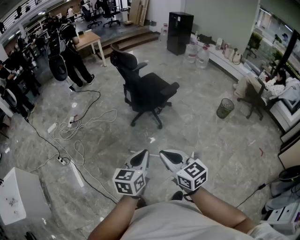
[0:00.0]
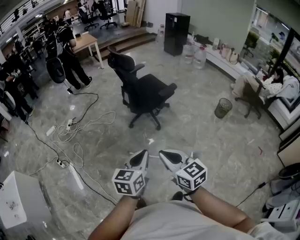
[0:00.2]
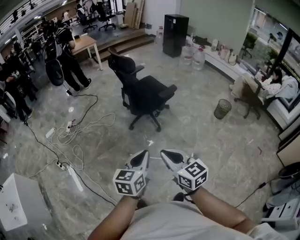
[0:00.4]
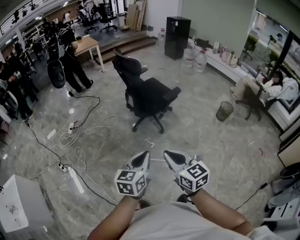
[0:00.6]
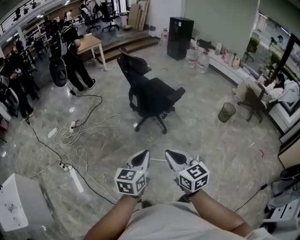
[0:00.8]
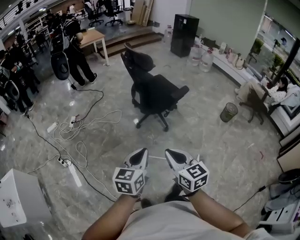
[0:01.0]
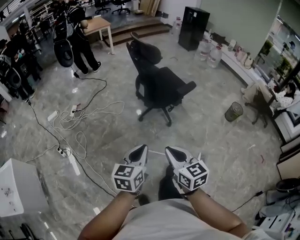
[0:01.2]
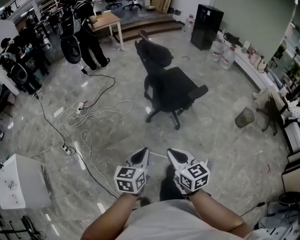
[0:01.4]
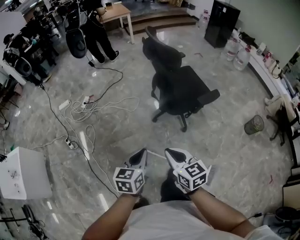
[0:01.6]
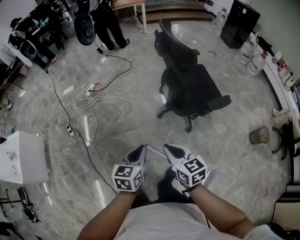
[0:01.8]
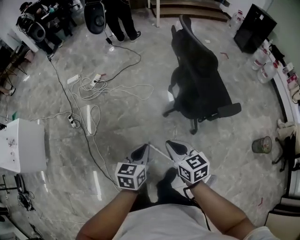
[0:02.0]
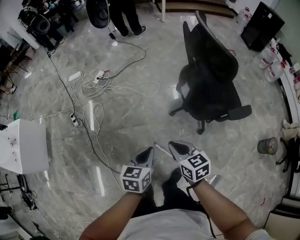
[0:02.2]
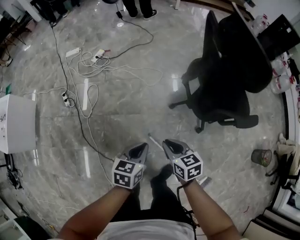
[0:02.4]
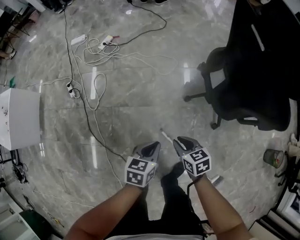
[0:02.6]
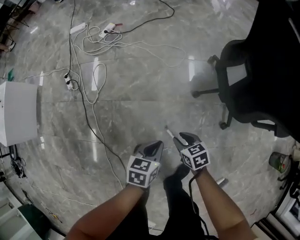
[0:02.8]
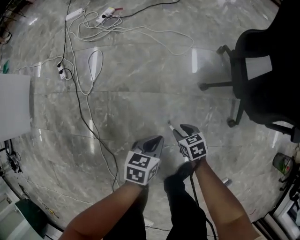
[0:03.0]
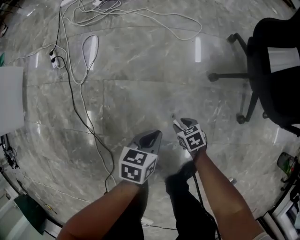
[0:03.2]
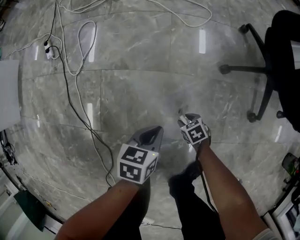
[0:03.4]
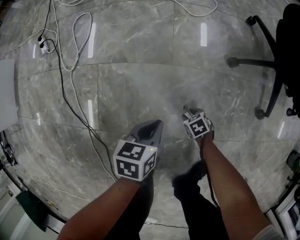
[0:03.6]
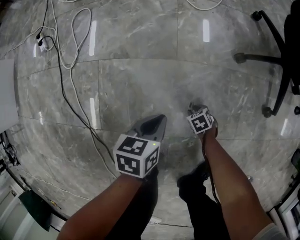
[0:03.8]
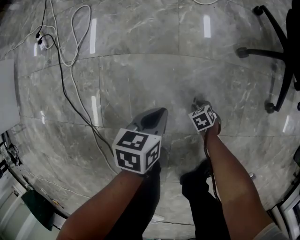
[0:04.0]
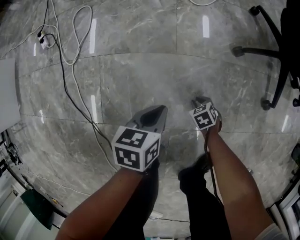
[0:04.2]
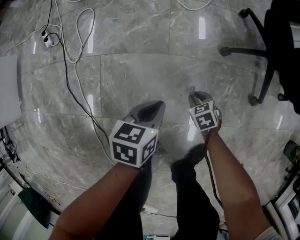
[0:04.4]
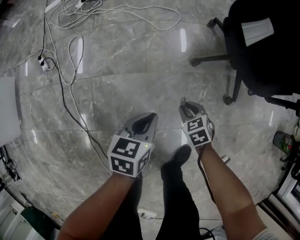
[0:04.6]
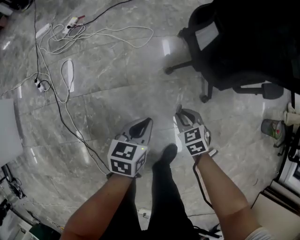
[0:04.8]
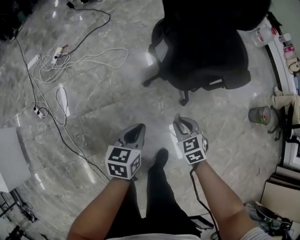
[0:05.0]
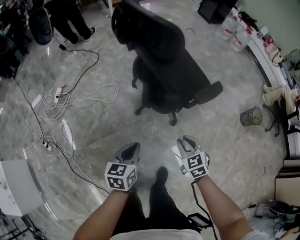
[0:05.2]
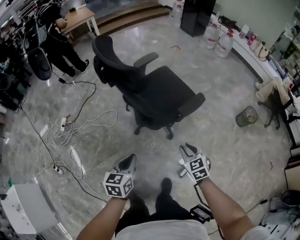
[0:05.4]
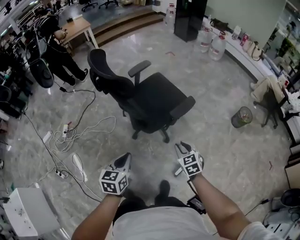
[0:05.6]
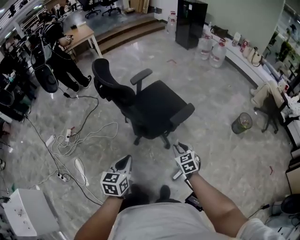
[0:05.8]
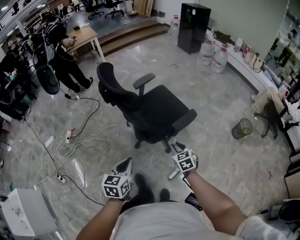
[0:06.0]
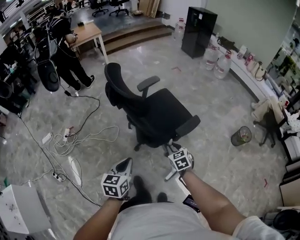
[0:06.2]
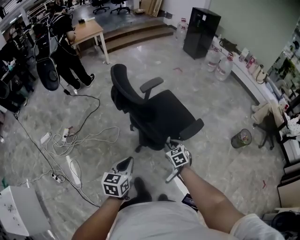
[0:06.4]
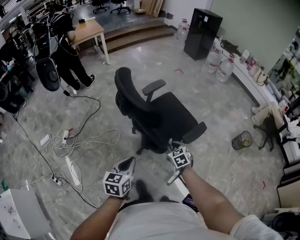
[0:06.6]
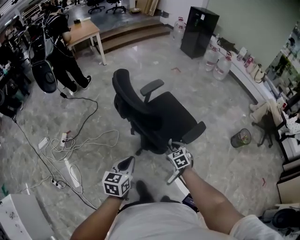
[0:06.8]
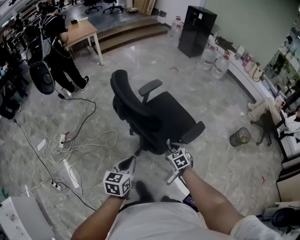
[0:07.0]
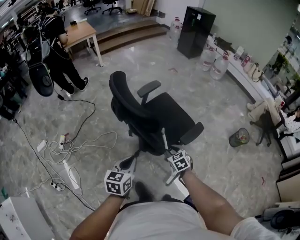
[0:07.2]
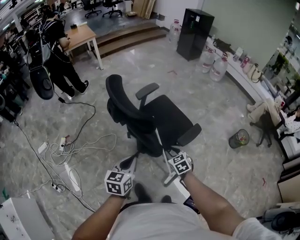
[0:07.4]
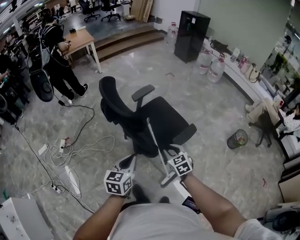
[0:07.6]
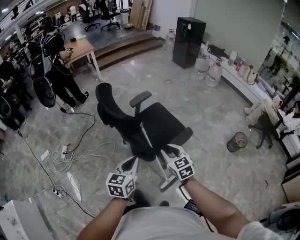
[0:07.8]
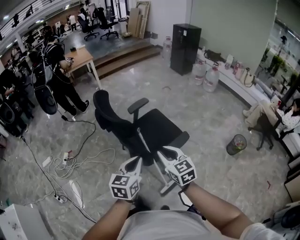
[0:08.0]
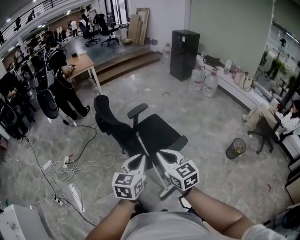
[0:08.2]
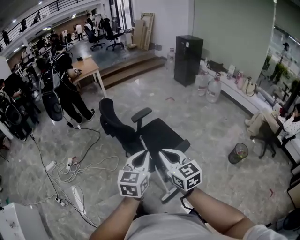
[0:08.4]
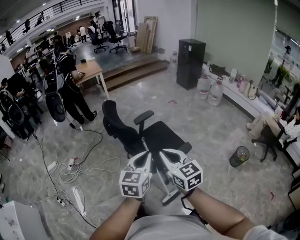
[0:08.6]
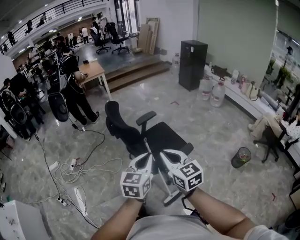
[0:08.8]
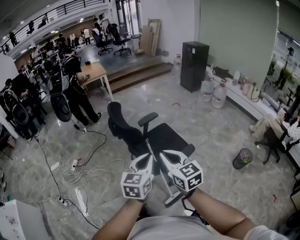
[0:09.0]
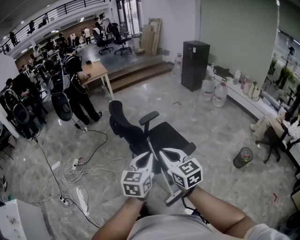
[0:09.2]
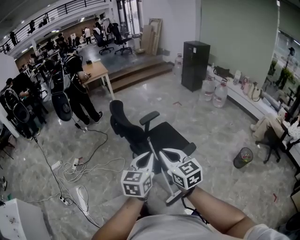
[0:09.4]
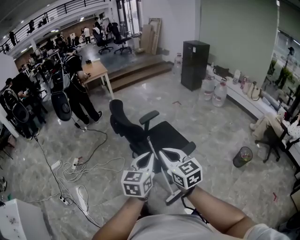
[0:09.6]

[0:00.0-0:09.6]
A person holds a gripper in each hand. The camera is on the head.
0.0 to 1.6 s: The left gripper heads forward, to the left and downward, covering roughly 30 cm, while the right gripper travels forward by some 30 cm.
1.6 to 3.2 s: The two grippers go about 70 cm downward. The right gripper tips its fingers downward by approximately 40 degrees, and opens. The left gripper turns by about 30 degrees.
3.2 to 4.8 s: Both grippers move upward, roughly 25 cm. The right gripper changes its angle by roughly 30 degrees.
4.8 to 6.4 s: The left gripper heads upward, covering roughly 40 cm, and changes its angle by roughly 20 degrees. The right gripper heads upward, to the right and forward, covering about 50 cm, and changes its angle by roughly 30 degrees.
6.4 to 8.0 s: The left gripper is displaced to the right and upward by approximately 20 cm; the right gripper travels upward by roughly 25 cm, and changes its angle by approximately 30 degrees.
8.0 to 9.6 s: The left gripper shifts some 10 cm upward. Meanwhile the right gripper goes approximately 15 cm upward and backward.

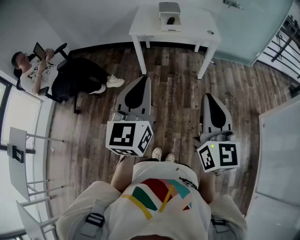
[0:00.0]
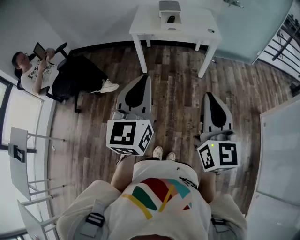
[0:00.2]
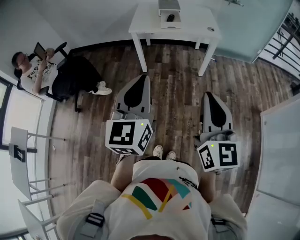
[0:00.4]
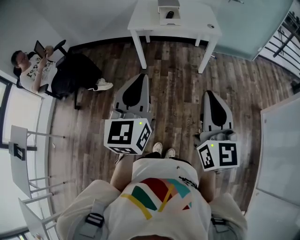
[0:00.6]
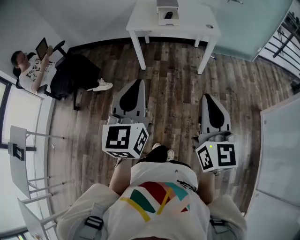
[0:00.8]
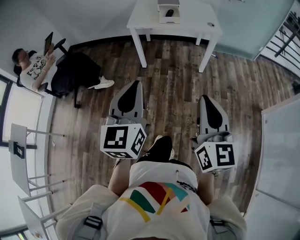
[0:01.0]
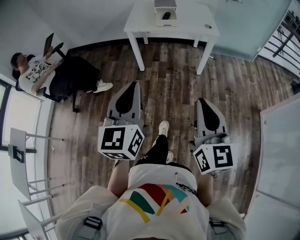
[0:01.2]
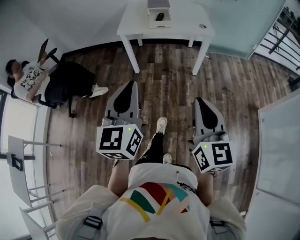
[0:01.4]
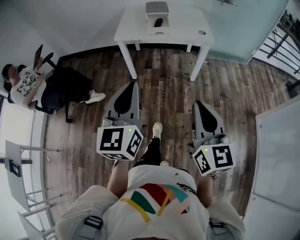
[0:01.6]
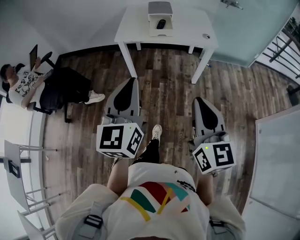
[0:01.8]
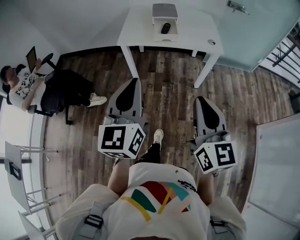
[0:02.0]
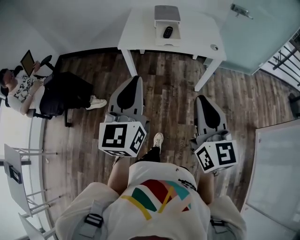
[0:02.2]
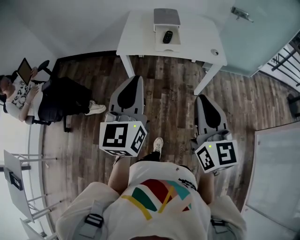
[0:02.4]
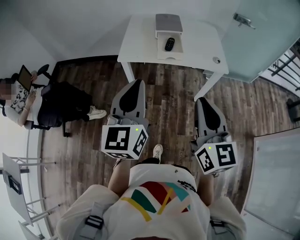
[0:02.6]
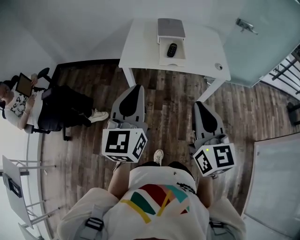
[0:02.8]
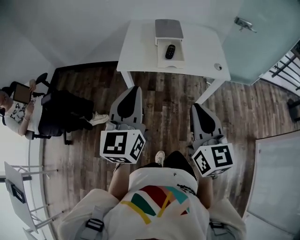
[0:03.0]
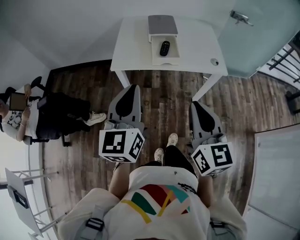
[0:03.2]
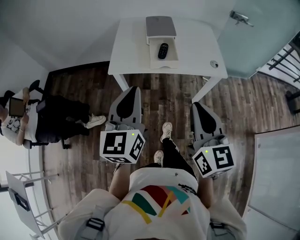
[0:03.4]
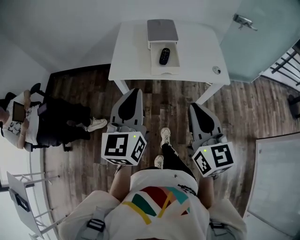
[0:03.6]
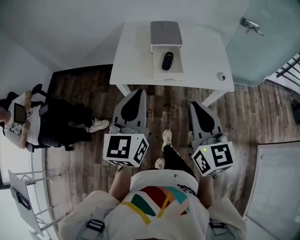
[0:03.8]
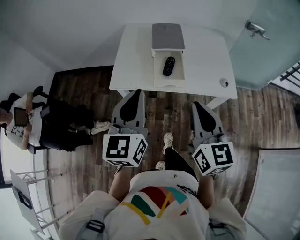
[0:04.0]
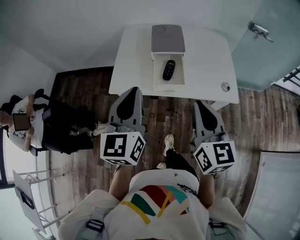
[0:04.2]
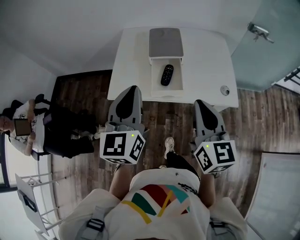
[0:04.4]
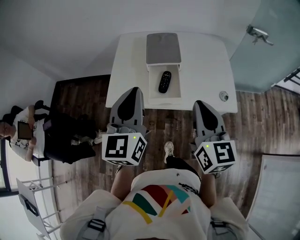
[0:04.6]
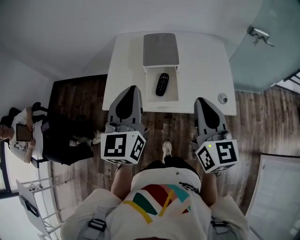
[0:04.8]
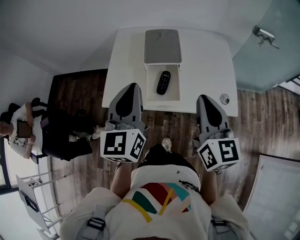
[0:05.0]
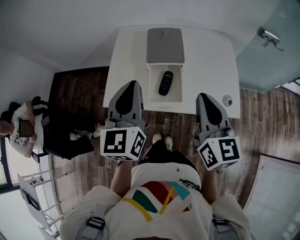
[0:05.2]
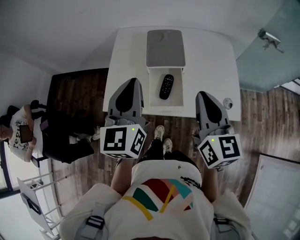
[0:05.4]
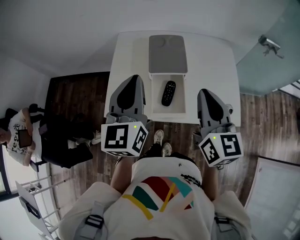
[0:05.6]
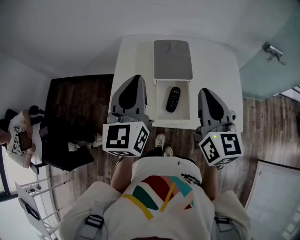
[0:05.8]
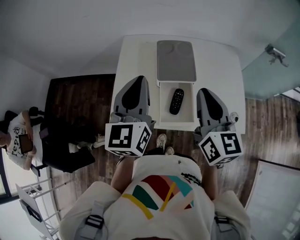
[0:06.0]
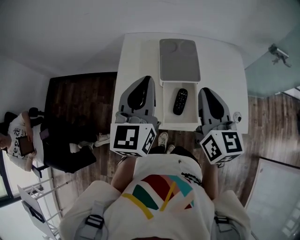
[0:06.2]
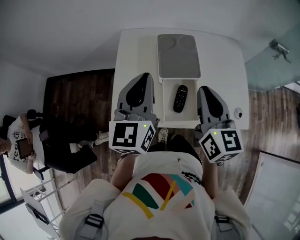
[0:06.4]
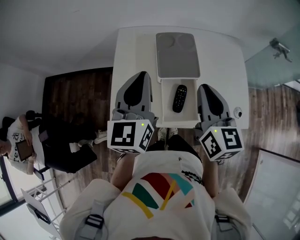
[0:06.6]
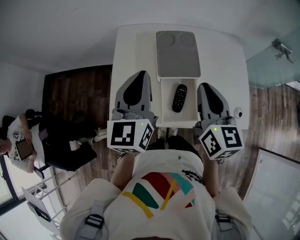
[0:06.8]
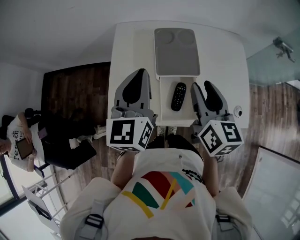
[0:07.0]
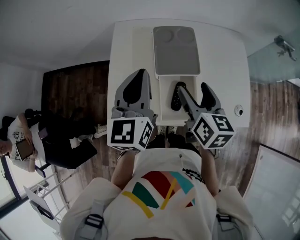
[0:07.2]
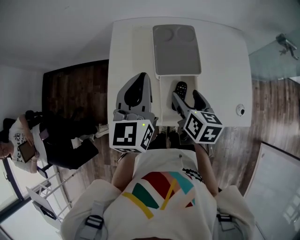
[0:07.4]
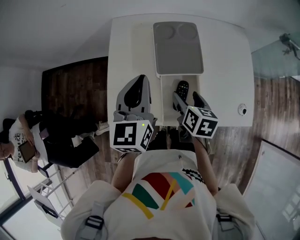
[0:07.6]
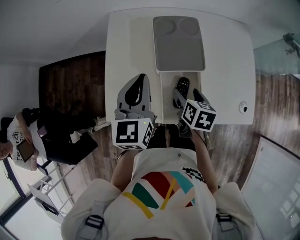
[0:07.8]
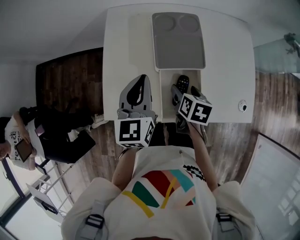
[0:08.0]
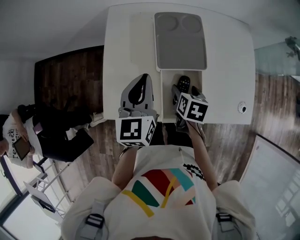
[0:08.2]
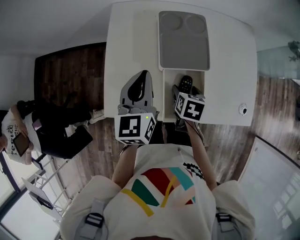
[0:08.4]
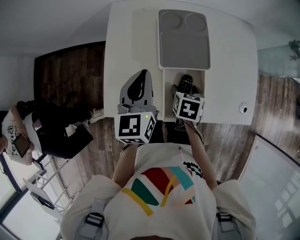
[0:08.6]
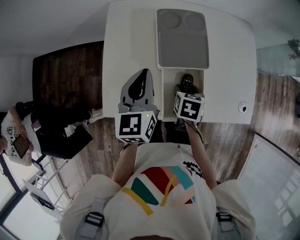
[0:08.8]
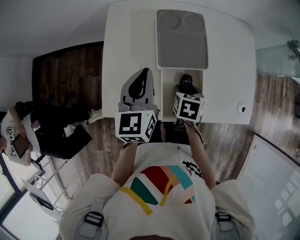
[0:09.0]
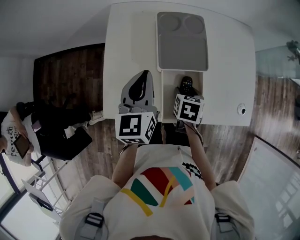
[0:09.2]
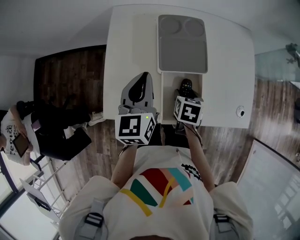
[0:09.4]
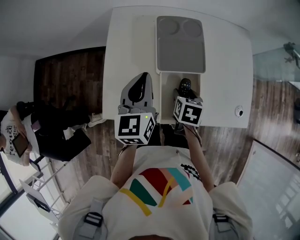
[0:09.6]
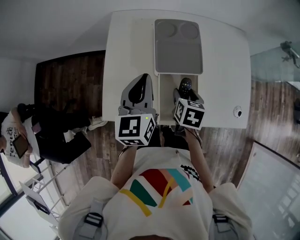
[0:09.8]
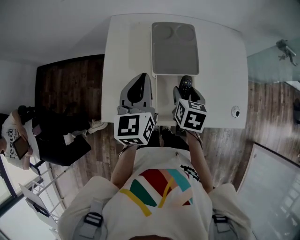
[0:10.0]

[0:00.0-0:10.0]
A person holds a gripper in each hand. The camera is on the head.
0.0 to 1.4 s: The left gripper shifts by approximately 5 cm, while the right gripper is displaced downward by some 5 cm.
1.4 to 2.8 s: The grippers both shift forward by approximately 35 cm.
2.8 to 4.2 s: Both grippers move forward, some 25 cm.
4.2 to 5.8 s: The grippers both shift forward by approximately 20 cm.
5.8 to 7.2 s: The left gripper goes approximately 10 cm forward and downward. Meanwhile the right gripper heads downward and forward, covering approximately 15 cm, turns by about 20 degrees, and opens.
7.2 to 8.6 s: The right gripper shifts some 20 cm downward, and points its fingers approximately 40 degrees further downward, while the left gripper shifts about 10 cm downward.
8.6 to 10.0 s: The right gripper is displaced upward by approximately 10 cm.

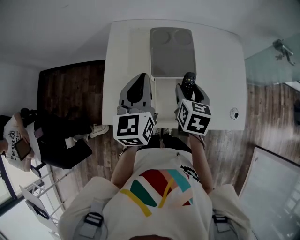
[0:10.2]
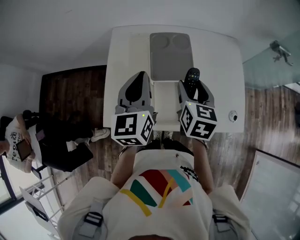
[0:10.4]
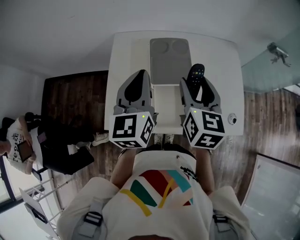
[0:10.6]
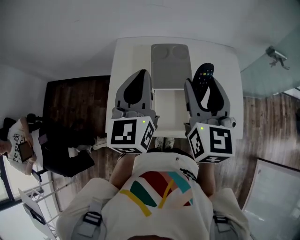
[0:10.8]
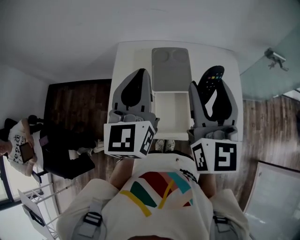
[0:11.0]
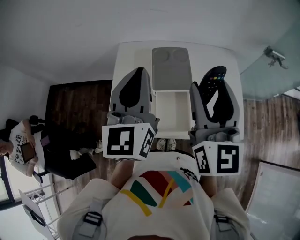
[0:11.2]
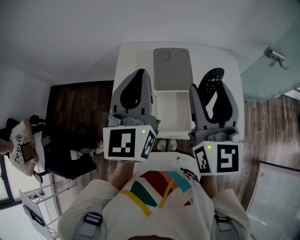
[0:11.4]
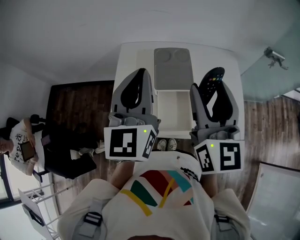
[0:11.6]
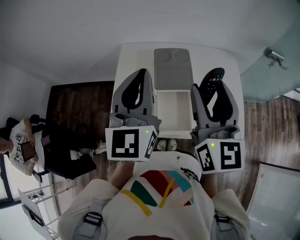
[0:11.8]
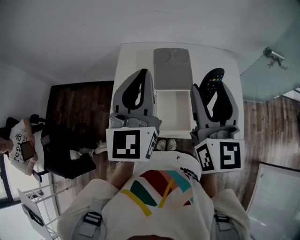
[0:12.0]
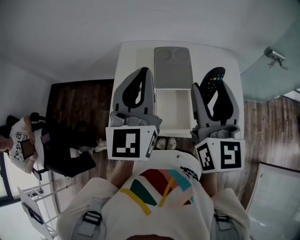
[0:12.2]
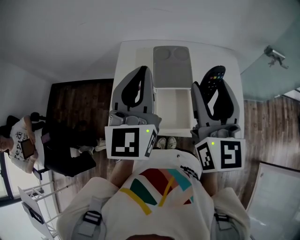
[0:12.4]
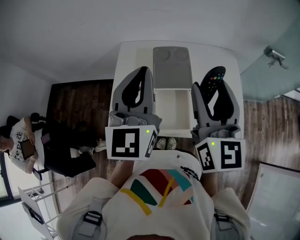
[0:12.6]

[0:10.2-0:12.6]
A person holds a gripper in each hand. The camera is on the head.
10.2 to 11.4 s: The right gripper travels upward by roughly 25 cm, and tips its fingers upward by roughly 40 degrees, while the left gripper heads upward, covering about 15 cm.
11.4 to 12.6 s: Both grippers stay put.

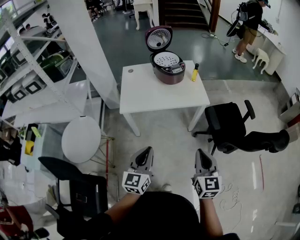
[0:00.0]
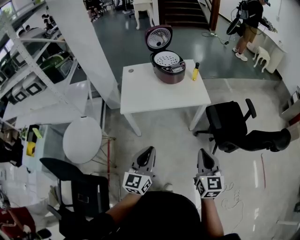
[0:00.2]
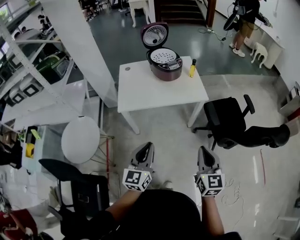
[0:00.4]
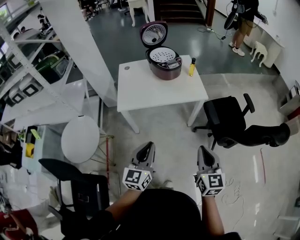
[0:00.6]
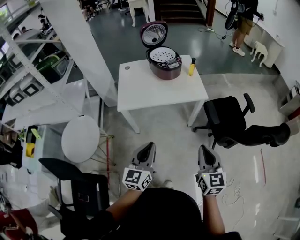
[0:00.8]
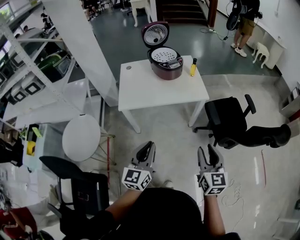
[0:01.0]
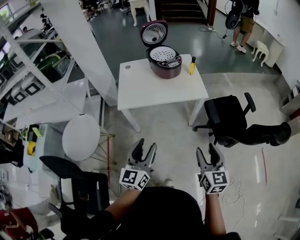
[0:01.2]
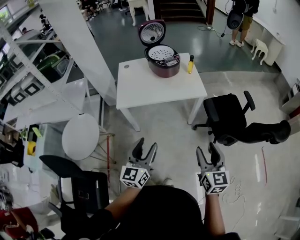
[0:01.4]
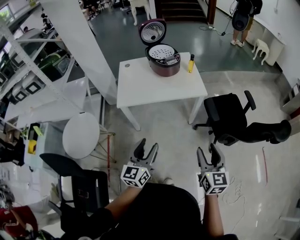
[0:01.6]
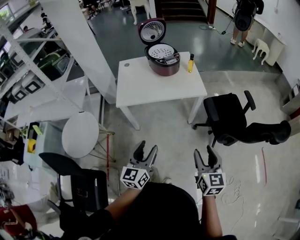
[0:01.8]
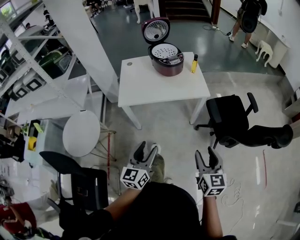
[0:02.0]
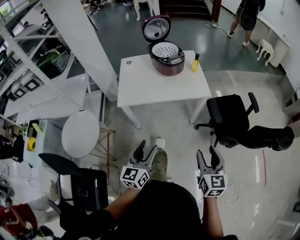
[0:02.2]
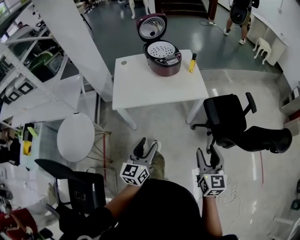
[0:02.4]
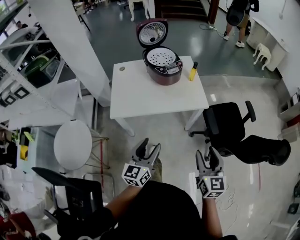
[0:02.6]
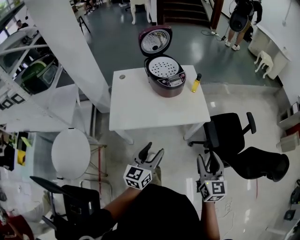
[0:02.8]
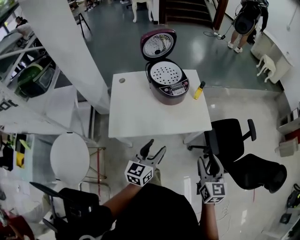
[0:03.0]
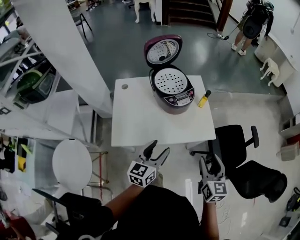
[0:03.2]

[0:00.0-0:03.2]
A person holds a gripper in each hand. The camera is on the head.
0.0 to 1.6 s: The right gripper moves to the right, about 5 cm, and opens. Meanwhile the left gripper opens up.
1.6 to 3.2 s: Both grippers travel together forward, roughly 35 cm.
